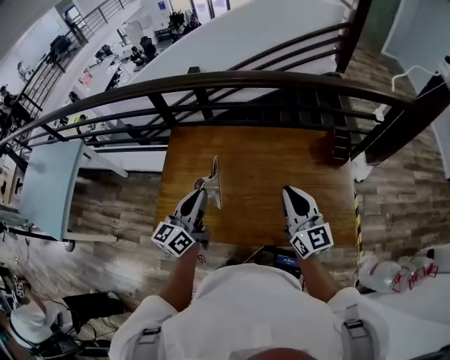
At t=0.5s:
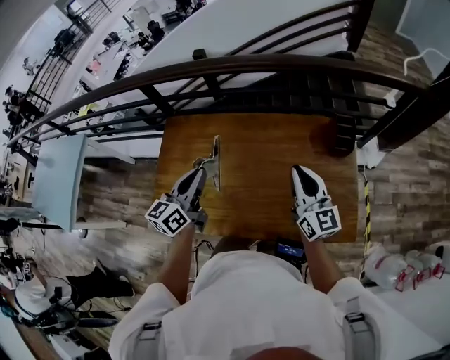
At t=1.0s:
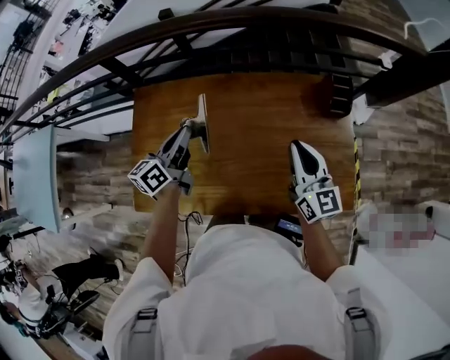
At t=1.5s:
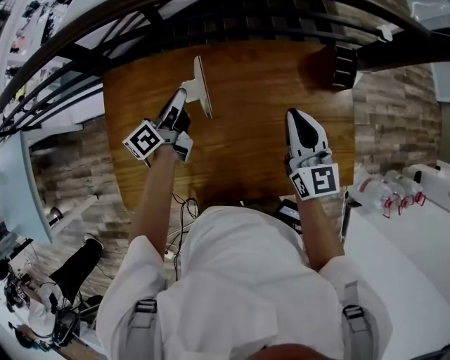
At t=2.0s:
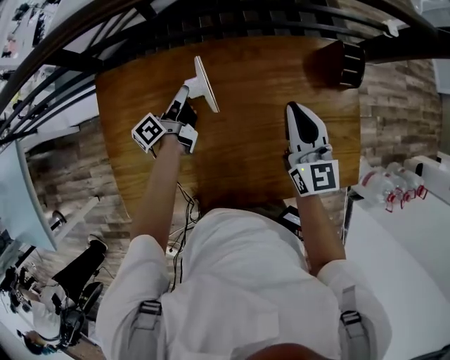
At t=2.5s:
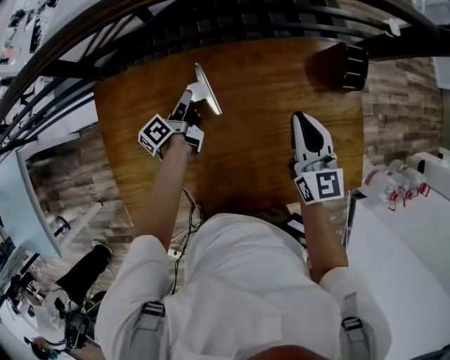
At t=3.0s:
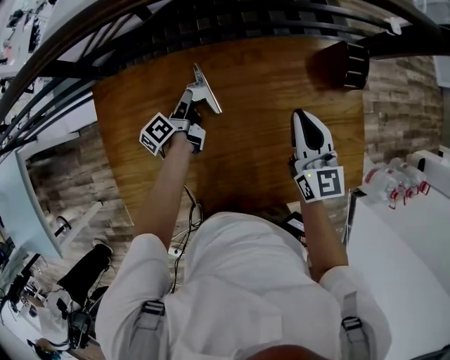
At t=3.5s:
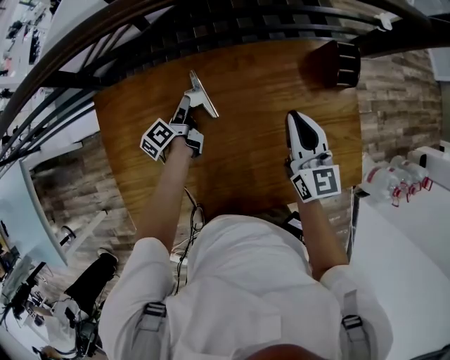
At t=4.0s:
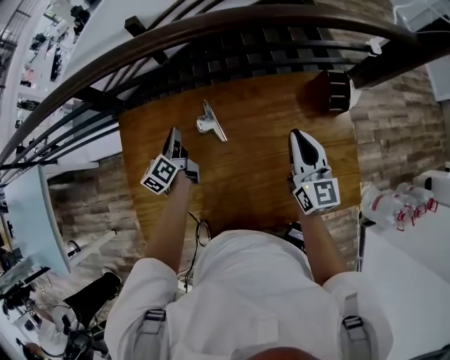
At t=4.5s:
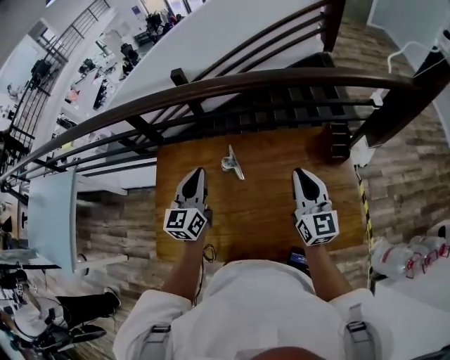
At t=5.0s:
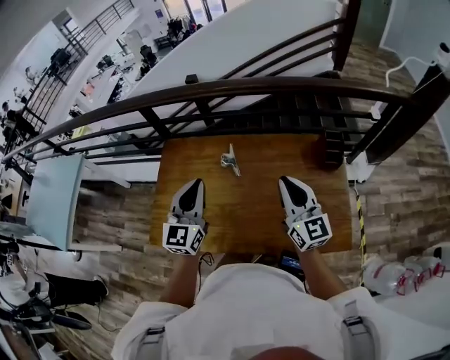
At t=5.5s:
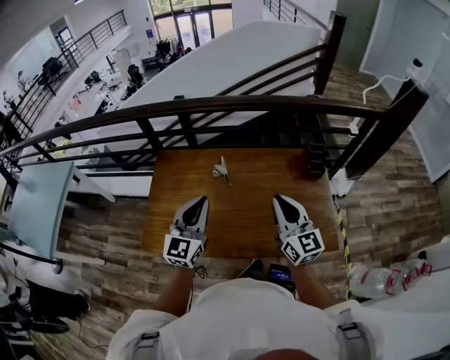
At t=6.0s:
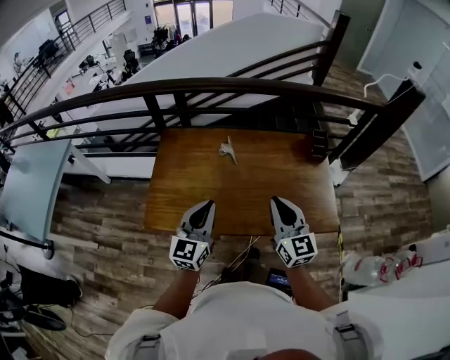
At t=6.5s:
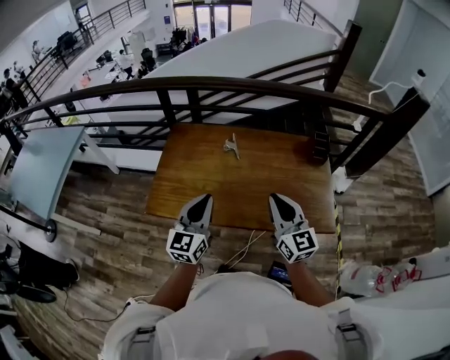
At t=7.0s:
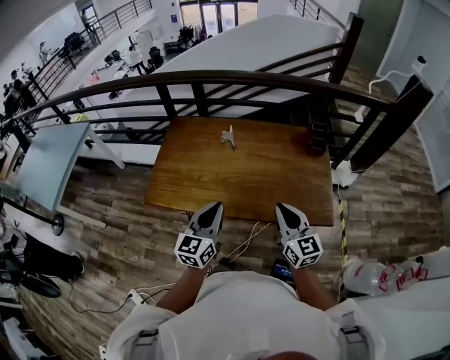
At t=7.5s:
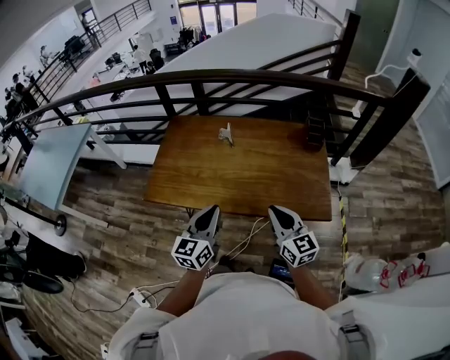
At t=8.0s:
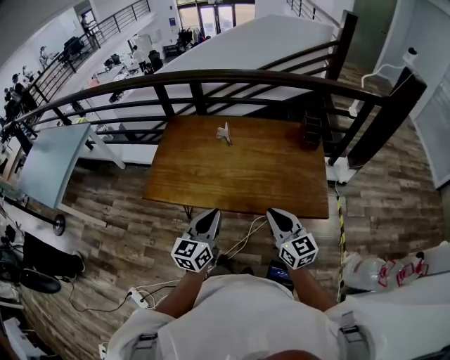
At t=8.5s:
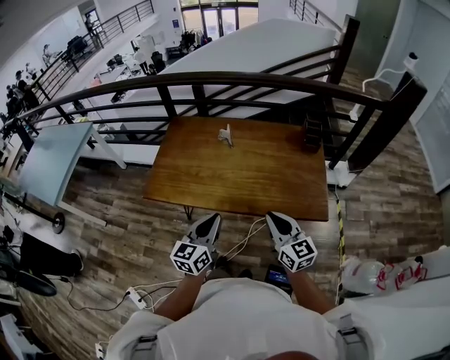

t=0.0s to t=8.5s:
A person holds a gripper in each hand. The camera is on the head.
t=0.0s to t=2.0s: The right gripper travels forward and downward by approximately 30 cm, and changes its angle by roughly 20 degrees. Meanwhile the left gripper moves forward and downward, some 50 cm, and rolls counterclockwise, seen from behind, by some 50 degrees.
t=2.0s to t=4.0s: The left gripper travels upward and to the left by roughly 10 cm, and swivels some 30 degrees.
t=4.0s to t=6.5s: The grippers both shift backward and upward by about 50 cm. The left gripper rolls clockwise, seen from behind, by approximately 40 degrees. The right gripper turns by some 20 degrees.
t=6.5s to t=8.5s: Both grippers travel together backward, to the right and downward, some 20 cm.

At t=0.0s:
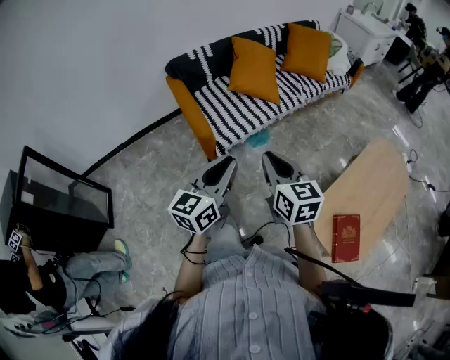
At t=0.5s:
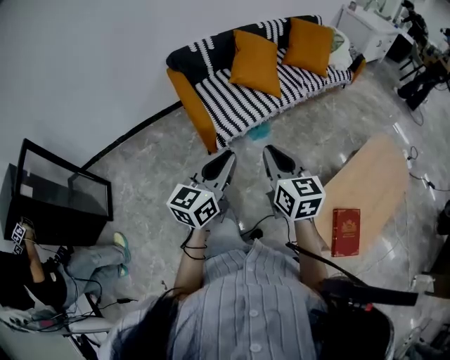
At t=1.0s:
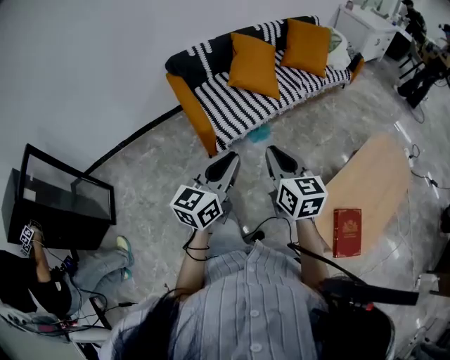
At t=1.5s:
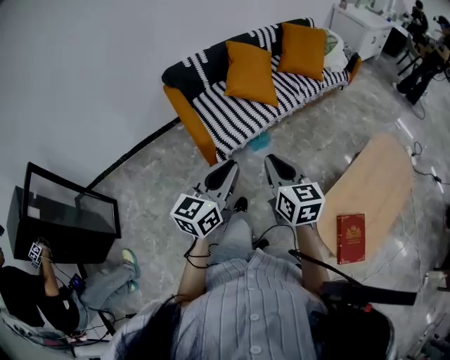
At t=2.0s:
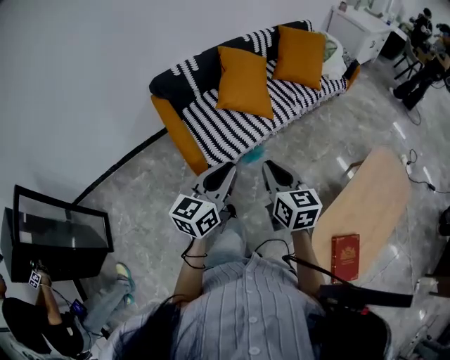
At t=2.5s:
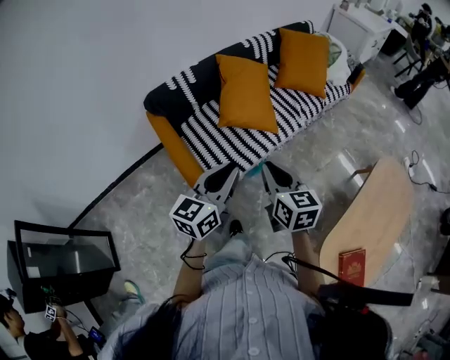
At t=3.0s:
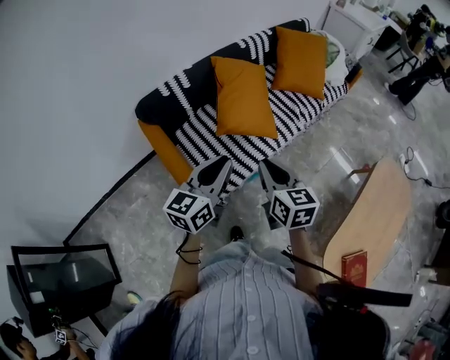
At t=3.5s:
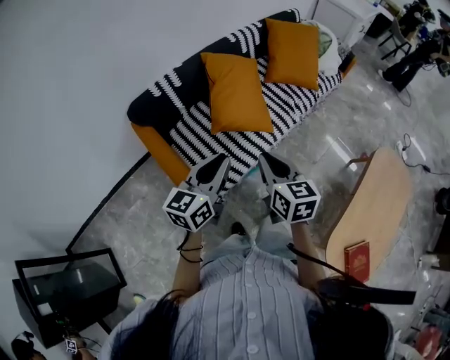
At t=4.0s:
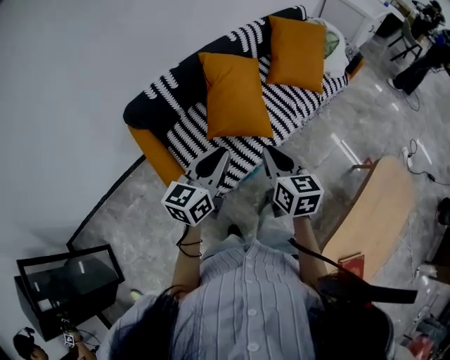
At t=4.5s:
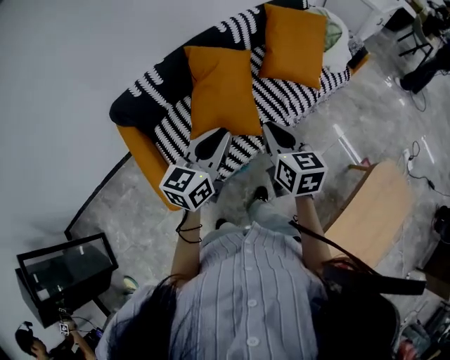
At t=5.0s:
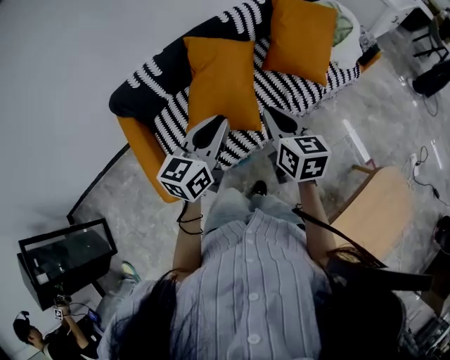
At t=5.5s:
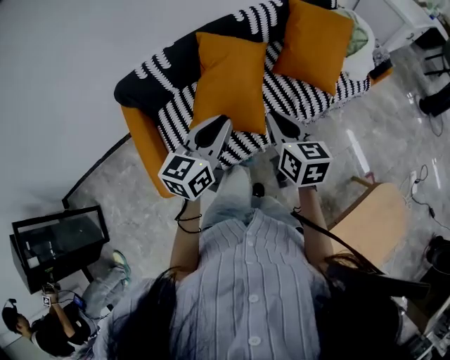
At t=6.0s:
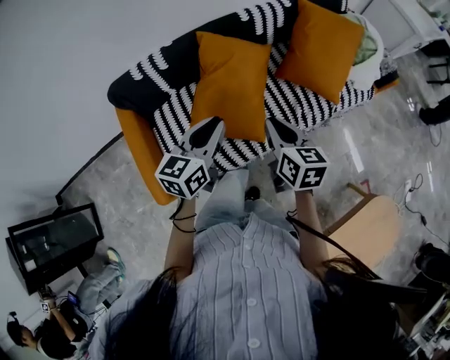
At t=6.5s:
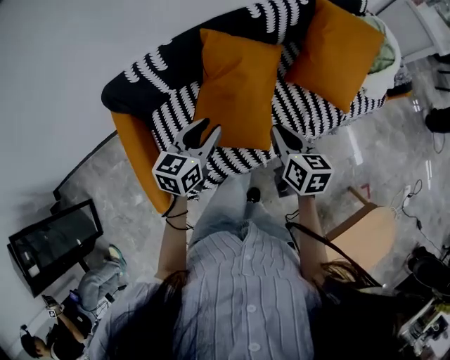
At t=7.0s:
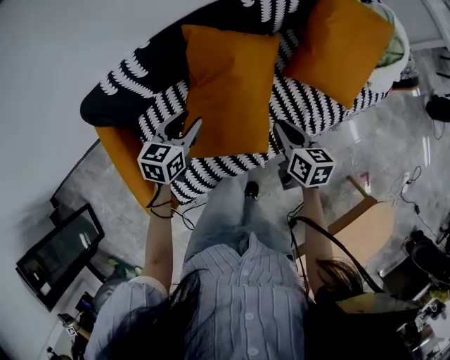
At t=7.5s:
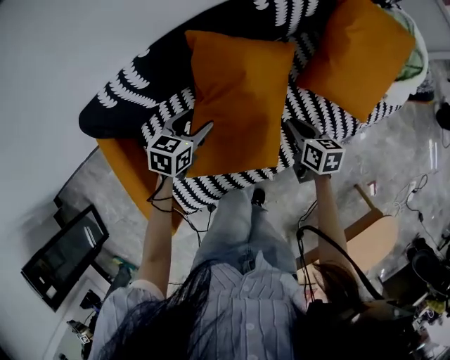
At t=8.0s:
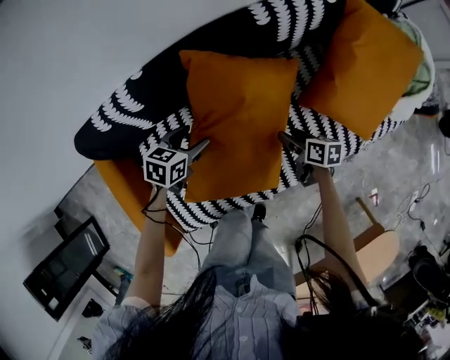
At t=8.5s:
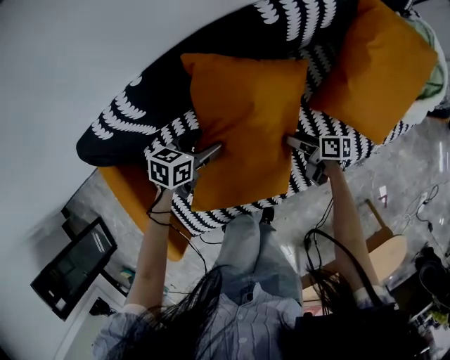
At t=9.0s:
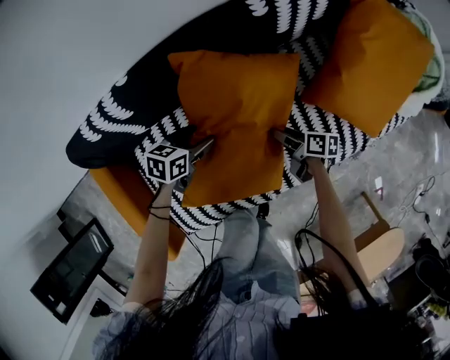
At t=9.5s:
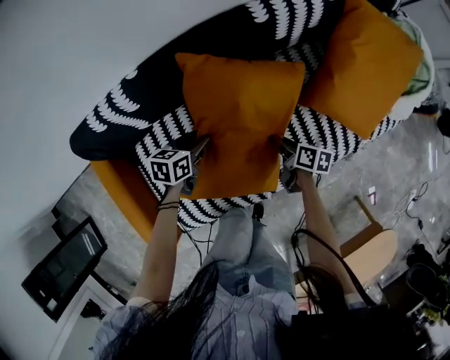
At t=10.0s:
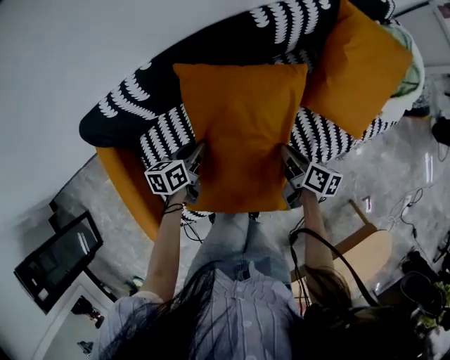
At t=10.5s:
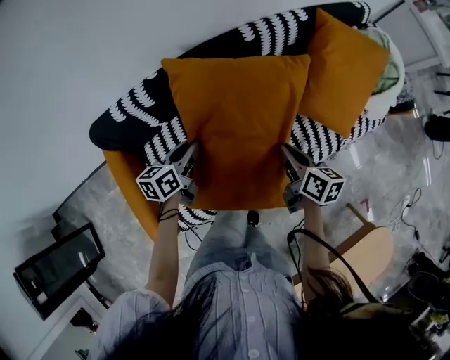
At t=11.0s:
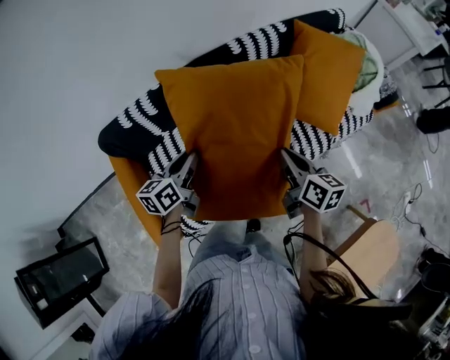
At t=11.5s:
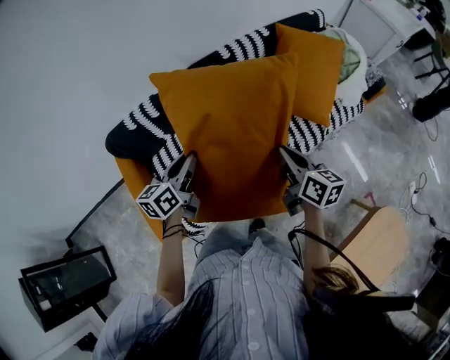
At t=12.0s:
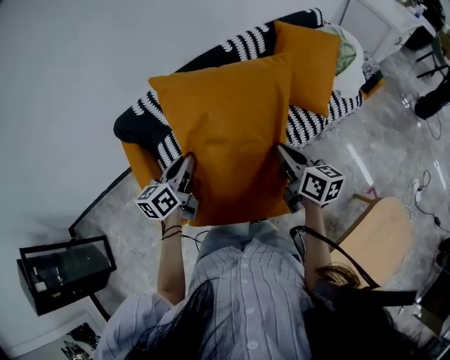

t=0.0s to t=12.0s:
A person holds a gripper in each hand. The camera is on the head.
t=0.0s to t=2.0s: Both grippers travel together forward, about 15 cm.
t=2.0s to t=4.0s: Both grippers move forward, roughly 30 cm.
t=4.0s to t=6.0s: Both grippers move forward, roughly 25 cm.
t=6.0s to t=8.0s: Both grippers travel together downward and forward, some 40 cm. The right gripper rotates approximately 40 degrees, and opens its fingers. Meanwhile the left gripper points its fingers about 30 degrees further downward, and opens up.
t=8.0s to t=10.0s: The left gripper moves backward, approximately 5 cm, goes downward and returns, about 5 cm each way, swivels roughly 30 degrees, and closes its fingers. Meanwhile the right gripper moves upward and backward, approximately 15 cm, and closes.
t=10.0s to t=12.0s: The grippers both shift upward and backward by approximately 40 cm. The right gripper swivels approximately 30 degrees, while the left gripper rotates some 30 degrees.

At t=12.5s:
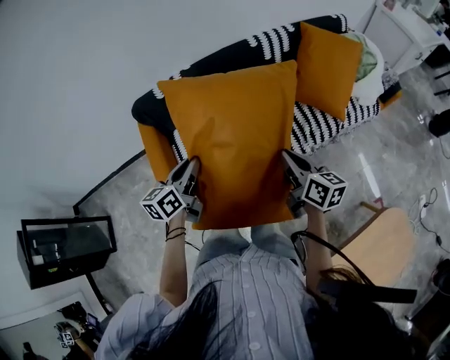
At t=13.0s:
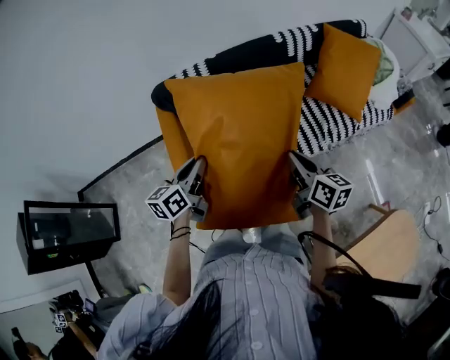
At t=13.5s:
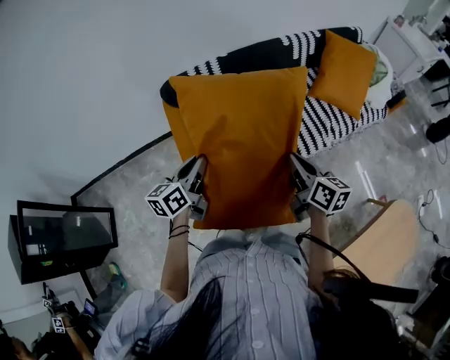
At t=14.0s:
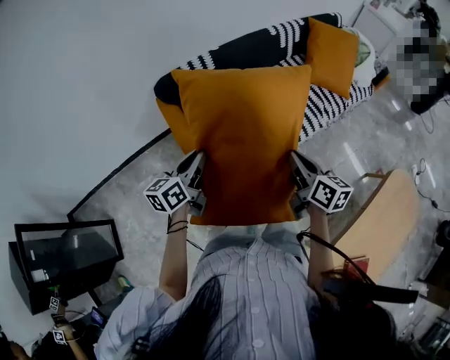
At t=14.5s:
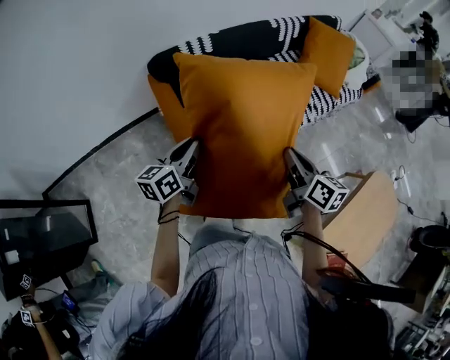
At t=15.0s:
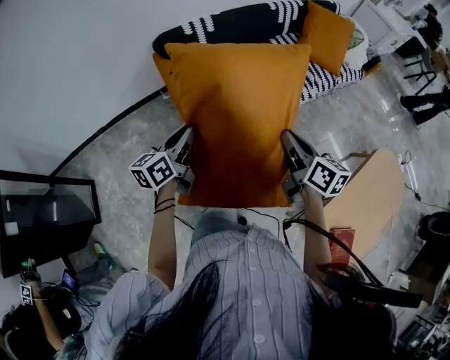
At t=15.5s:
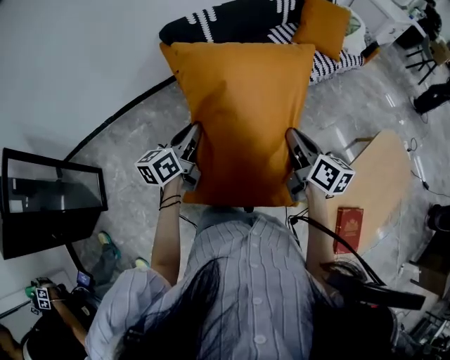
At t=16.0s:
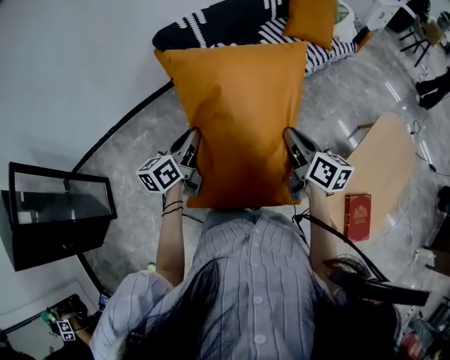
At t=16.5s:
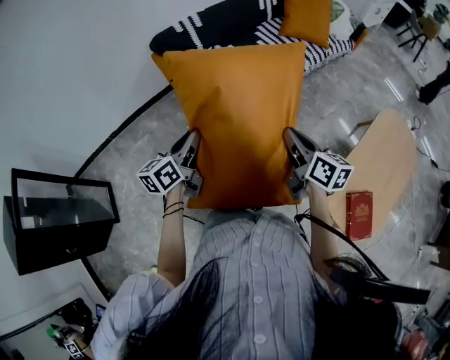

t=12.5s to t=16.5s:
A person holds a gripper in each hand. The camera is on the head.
t=12.5s to t=14.5s: The grippers both shift to the left and backward by approximately 30 cm.
t=14.5s to t=16.5s: Both grippers move backward, some 30 cm.

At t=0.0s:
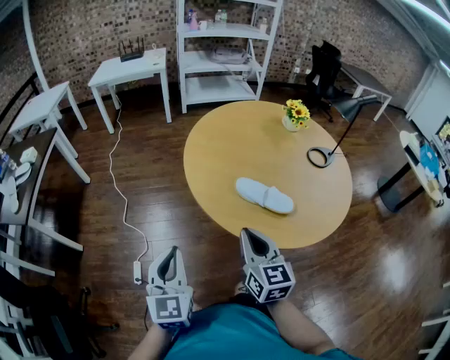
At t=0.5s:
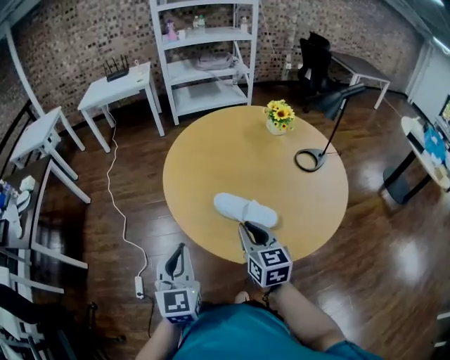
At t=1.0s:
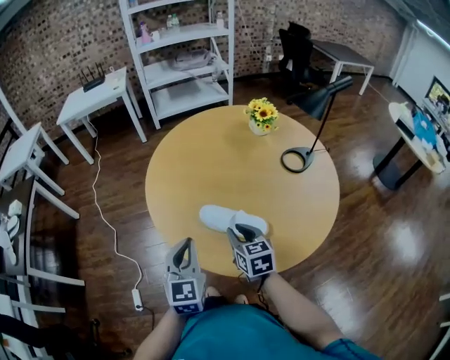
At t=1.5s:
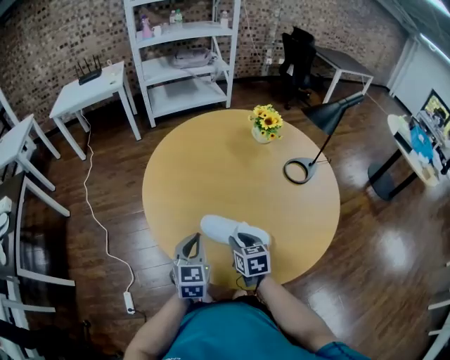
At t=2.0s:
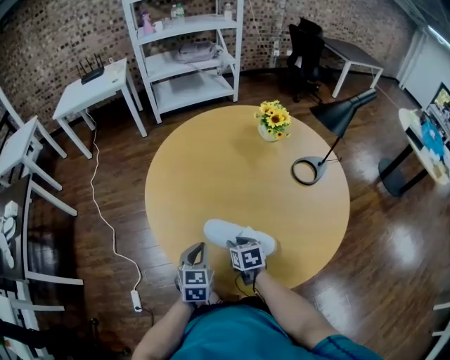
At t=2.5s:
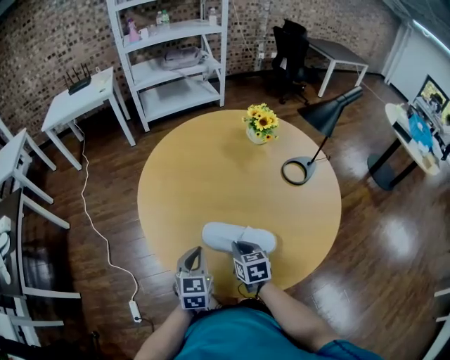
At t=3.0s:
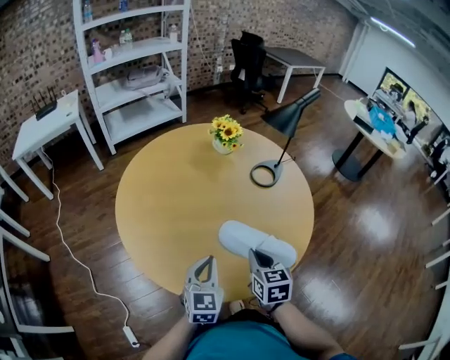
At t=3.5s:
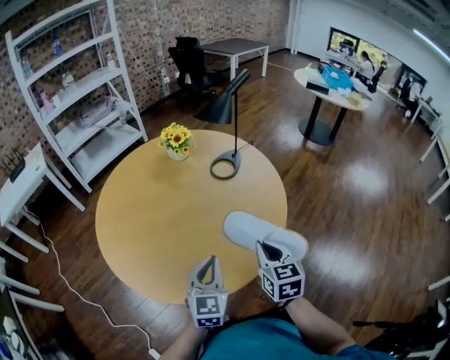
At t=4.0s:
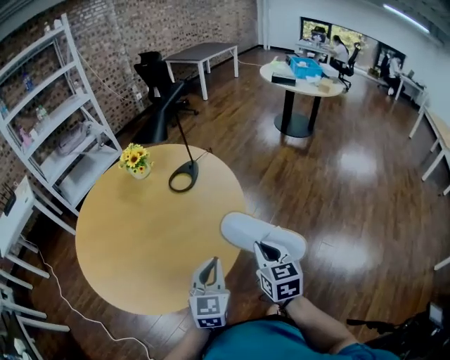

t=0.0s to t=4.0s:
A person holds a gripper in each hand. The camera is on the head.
t=0.0s to t=2.0s: The right gripper shifts roughly 40 cm forward, downward and to the right, tilts its fingers about 40 degrees downward, and opens its fingers, while the left gripper travels forward, to the right and downward by about 40 cm, and swivels roughly 30 degrees.
t=2.0s to t=4.0s: The pair of grippers is taken about 50 cm. The right gripper rotates roughly 50 degrees, and closes its fingers, while the left gripper swivels some 40 degrees.
